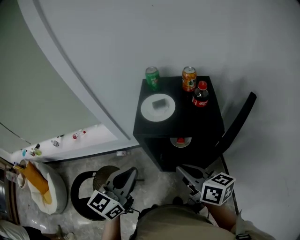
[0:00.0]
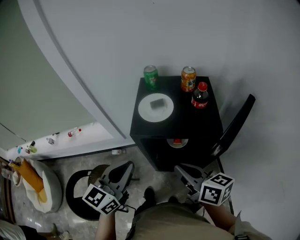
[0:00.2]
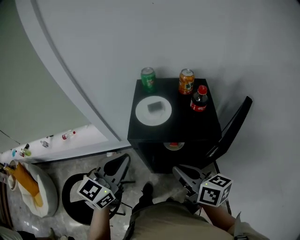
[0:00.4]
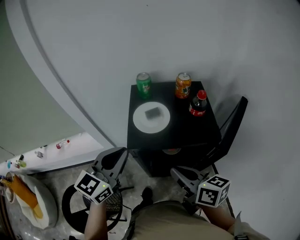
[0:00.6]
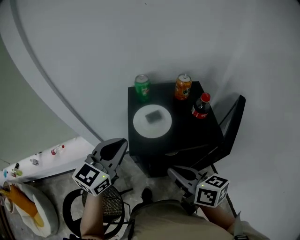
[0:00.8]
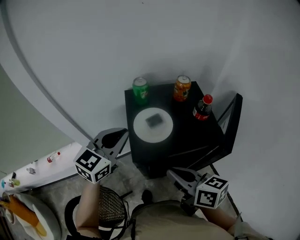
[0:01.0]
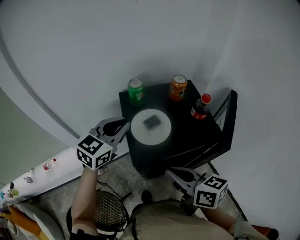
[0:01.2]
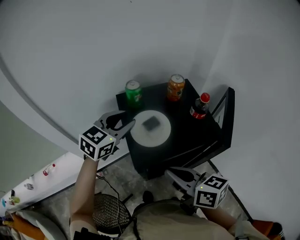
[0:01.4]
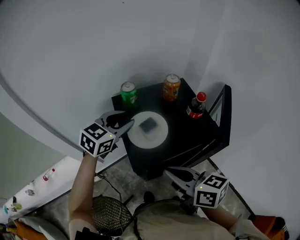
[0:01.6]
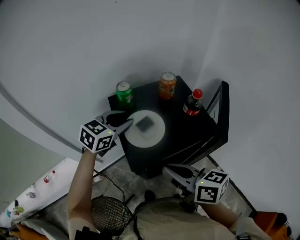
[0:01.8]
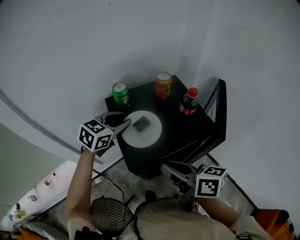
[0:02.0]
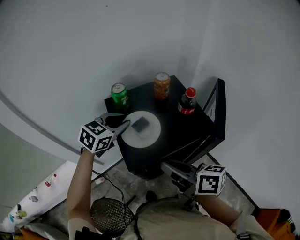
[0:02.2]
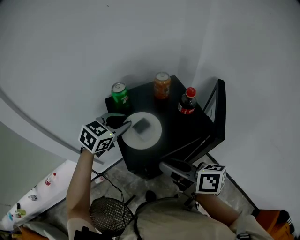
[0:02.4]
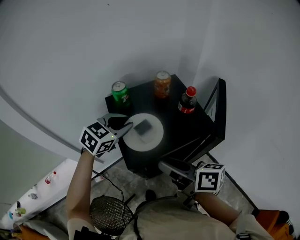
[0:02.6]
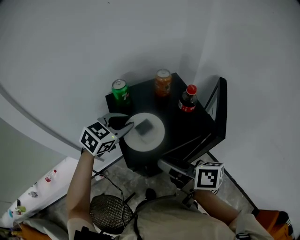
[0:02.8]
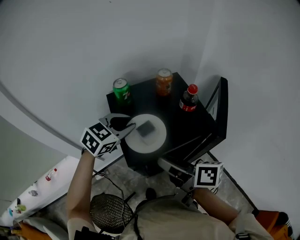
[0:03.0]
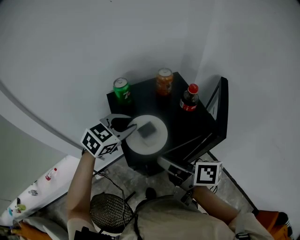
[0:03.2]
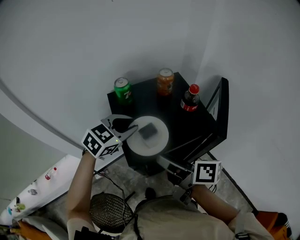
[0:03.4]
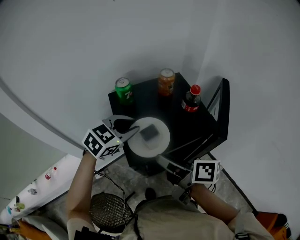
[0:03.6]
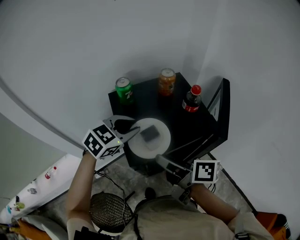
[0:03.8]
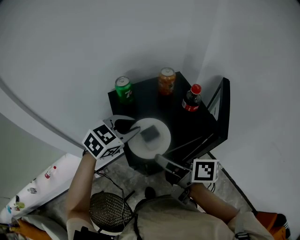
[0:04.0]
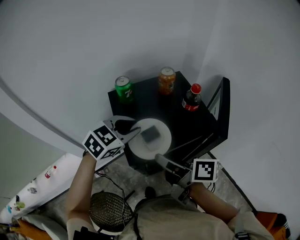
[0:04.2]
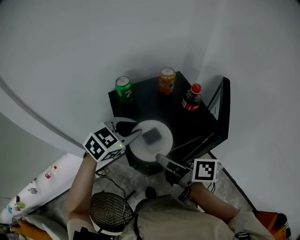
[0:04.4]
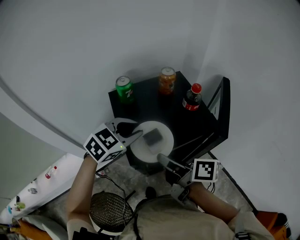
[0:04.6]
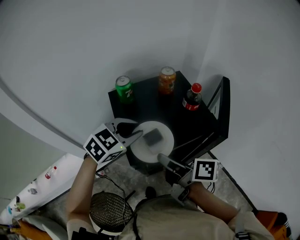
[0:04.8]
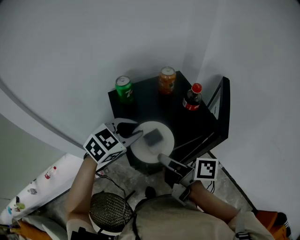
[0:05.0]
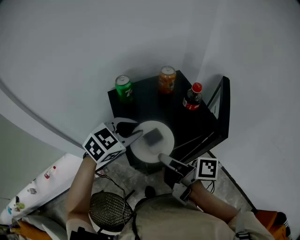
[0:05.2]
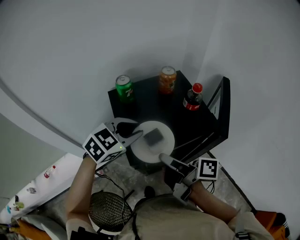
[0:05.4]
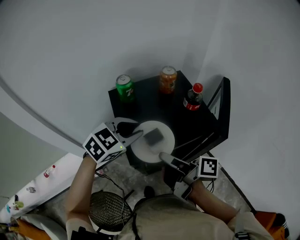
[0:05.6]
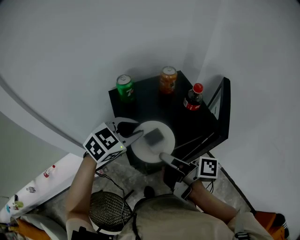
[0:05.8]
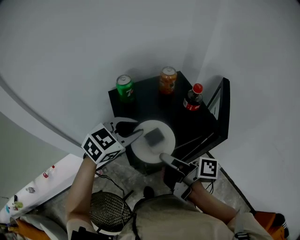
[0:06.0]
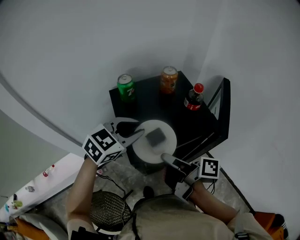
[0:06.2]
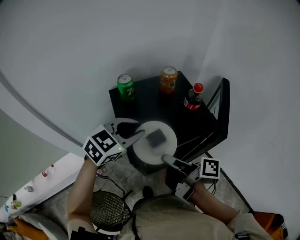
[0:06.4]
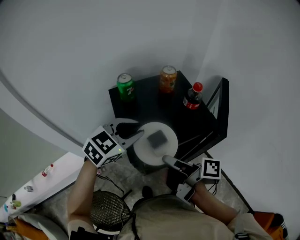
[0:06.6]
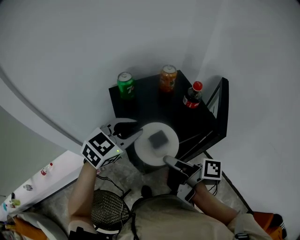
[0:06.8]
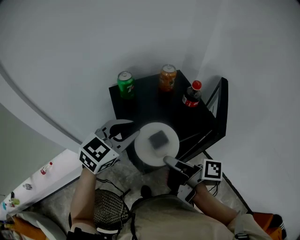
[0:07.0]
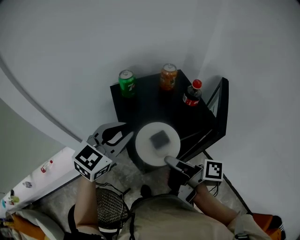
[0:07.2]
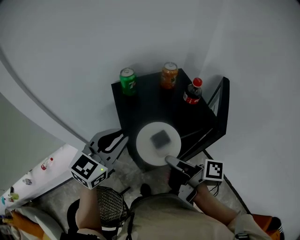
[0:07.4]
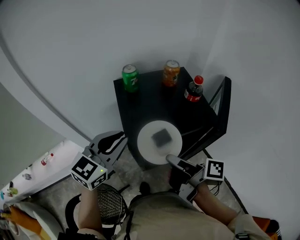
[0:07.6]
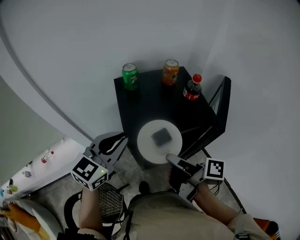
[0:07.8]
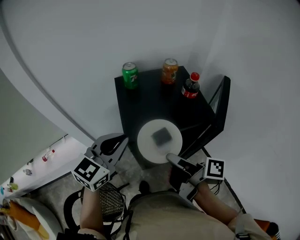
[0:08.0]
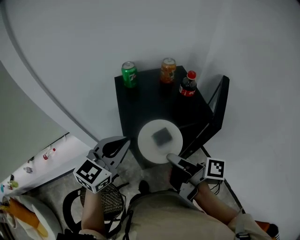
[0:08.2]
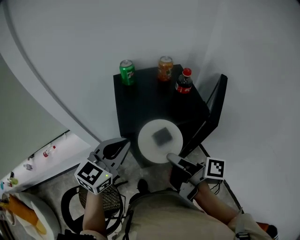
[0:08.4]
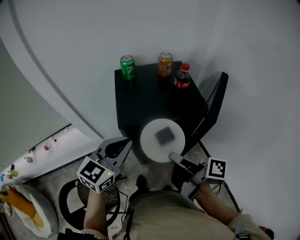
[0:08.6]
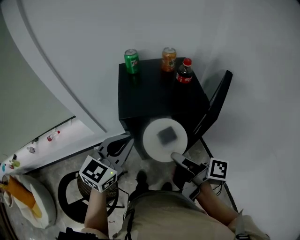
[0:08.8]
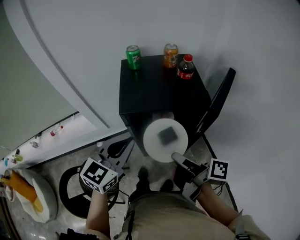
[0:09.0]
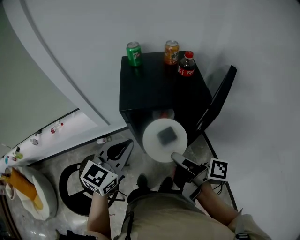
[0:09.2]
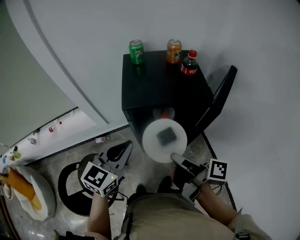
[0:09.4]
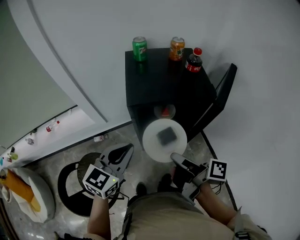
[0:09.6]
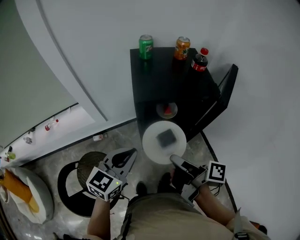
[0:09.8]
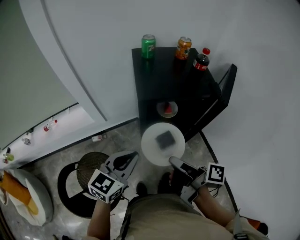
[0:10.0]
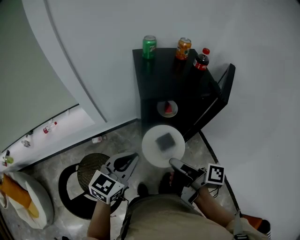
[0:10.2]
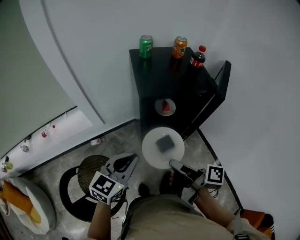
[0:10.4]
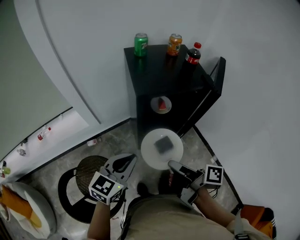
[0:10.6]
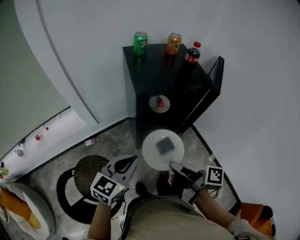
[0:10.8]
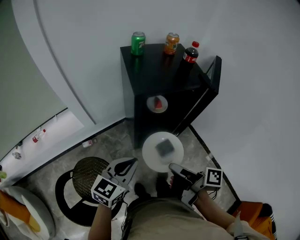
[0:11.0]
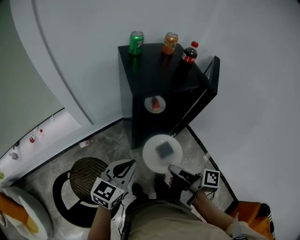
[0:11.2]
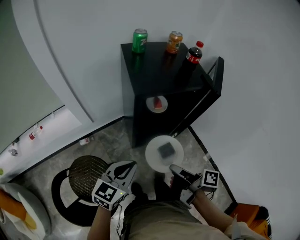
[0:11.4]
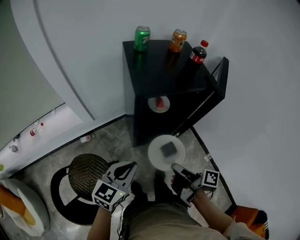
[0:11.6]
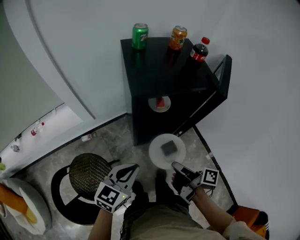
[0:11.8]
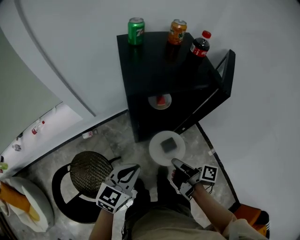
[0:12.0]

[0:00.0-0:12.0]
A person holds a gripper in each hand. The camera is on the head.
0:00.0 to 0:01.6: The right gripper shifts by roughly 10 cm. The left gripper moves some 30 cm, changes its angle by some 40 degrees, and opens up.
0:01.6 to 0:03.0: The right gripper changes its angle by some 30 degrees, and opens its fingers.
0:03.0 to 0:04.4: The grippers make only small movements.
0:04.4 to 0:06.0: The right gripper changes its angle by roughly 20 degrees.
0:06.0 to 0:07.6: The right gripper changes place by approximately 5 cm. The left gripper goes some 10 cm backward, and turns by some 30 degrees.
0:07.6 to 0:09.0: Both grippers move backward and to the right, approximately 15 cm.
0:09.0 to 0:10.4: The left gripper travels backward, to the left and downward by some 15 cm; the right gripper heads to the left and backward, covering about 15 cm.
0:10.4 to 0:12.0: The right gripper shifts about 15 cm downward and to the right; the left gripper travels downward by about 10 cm.

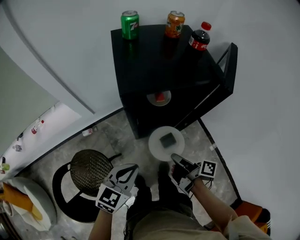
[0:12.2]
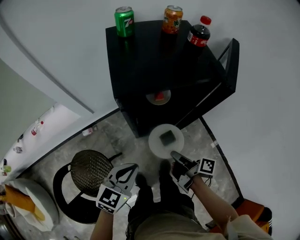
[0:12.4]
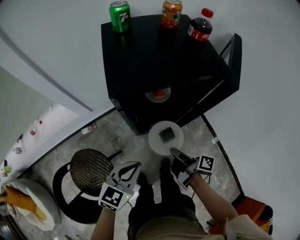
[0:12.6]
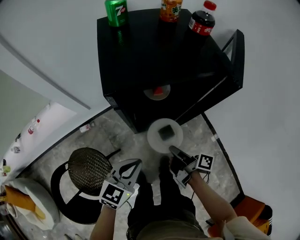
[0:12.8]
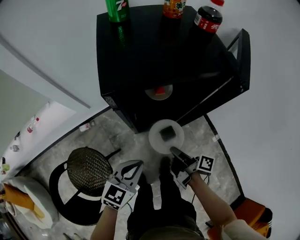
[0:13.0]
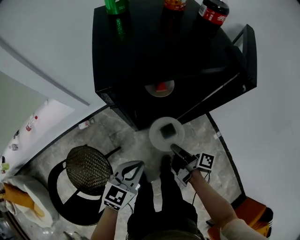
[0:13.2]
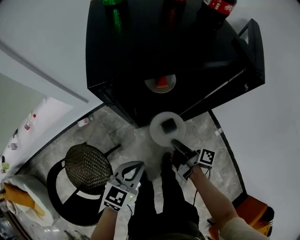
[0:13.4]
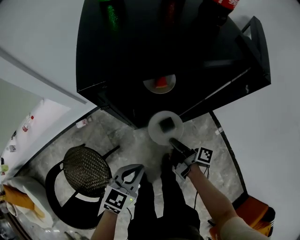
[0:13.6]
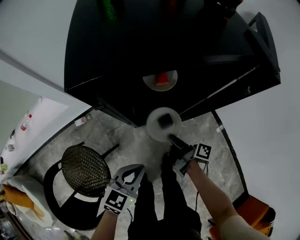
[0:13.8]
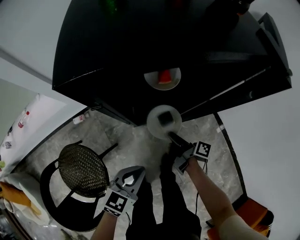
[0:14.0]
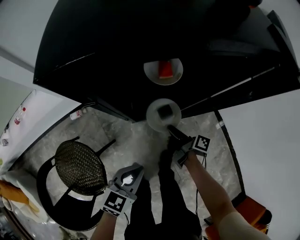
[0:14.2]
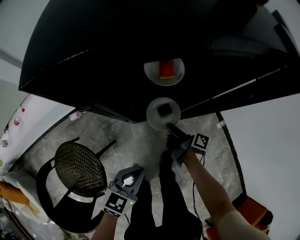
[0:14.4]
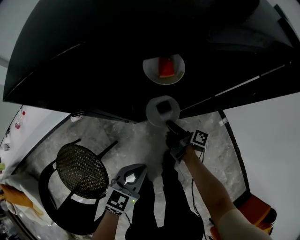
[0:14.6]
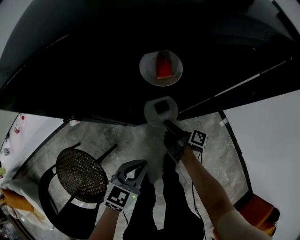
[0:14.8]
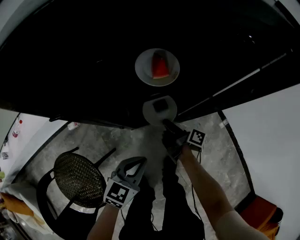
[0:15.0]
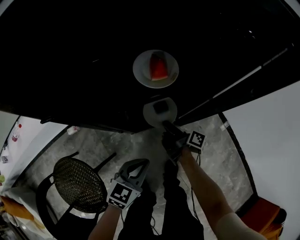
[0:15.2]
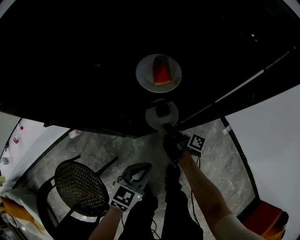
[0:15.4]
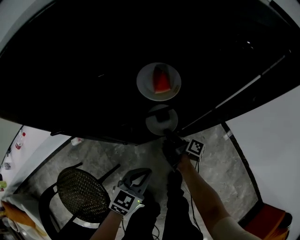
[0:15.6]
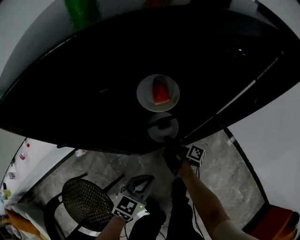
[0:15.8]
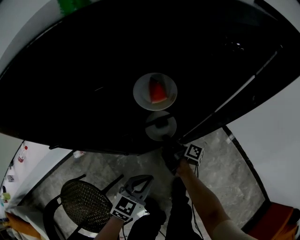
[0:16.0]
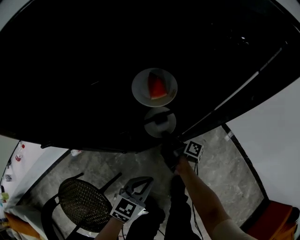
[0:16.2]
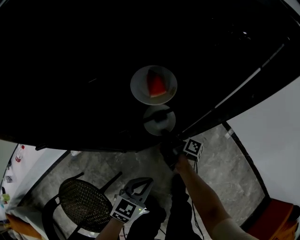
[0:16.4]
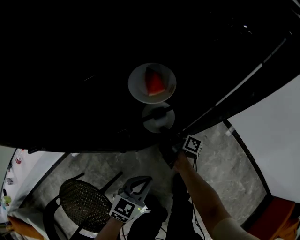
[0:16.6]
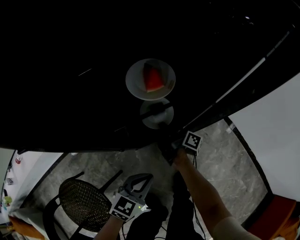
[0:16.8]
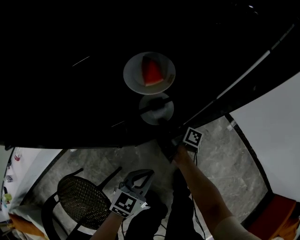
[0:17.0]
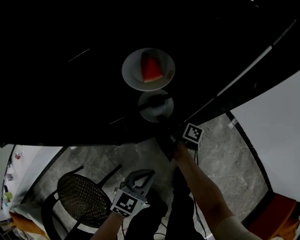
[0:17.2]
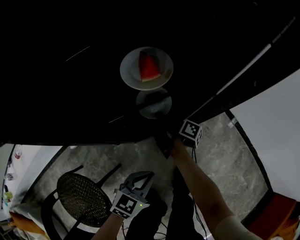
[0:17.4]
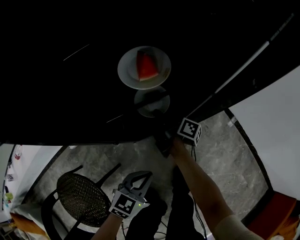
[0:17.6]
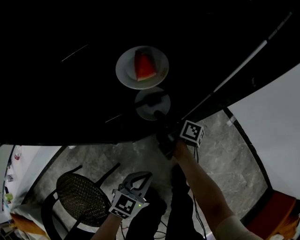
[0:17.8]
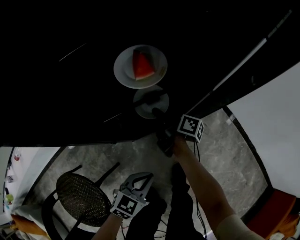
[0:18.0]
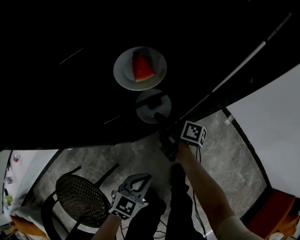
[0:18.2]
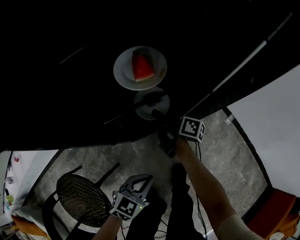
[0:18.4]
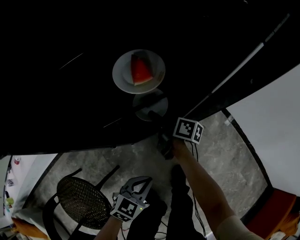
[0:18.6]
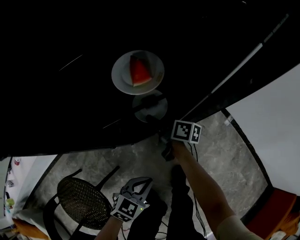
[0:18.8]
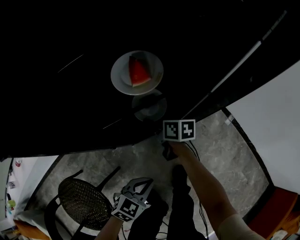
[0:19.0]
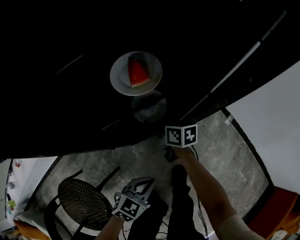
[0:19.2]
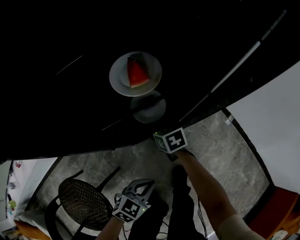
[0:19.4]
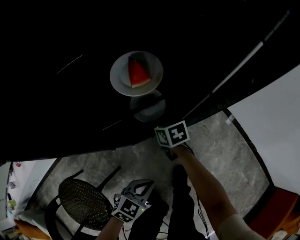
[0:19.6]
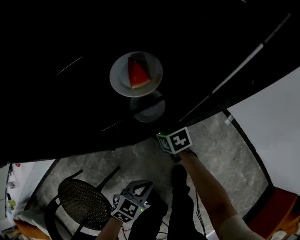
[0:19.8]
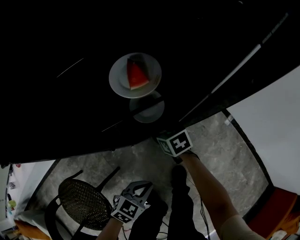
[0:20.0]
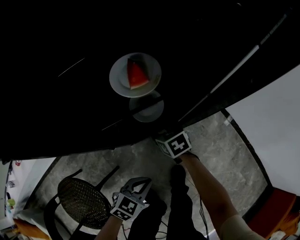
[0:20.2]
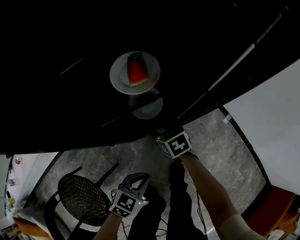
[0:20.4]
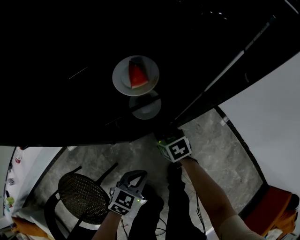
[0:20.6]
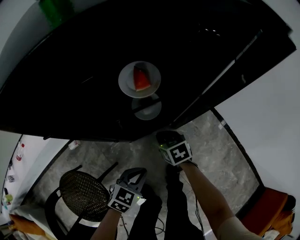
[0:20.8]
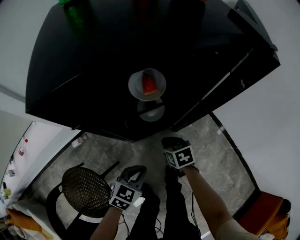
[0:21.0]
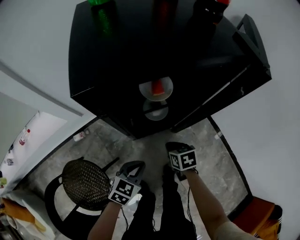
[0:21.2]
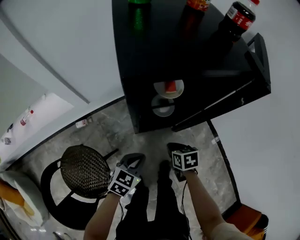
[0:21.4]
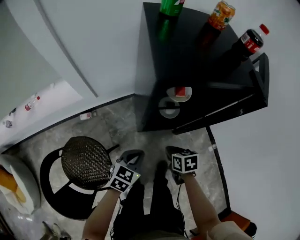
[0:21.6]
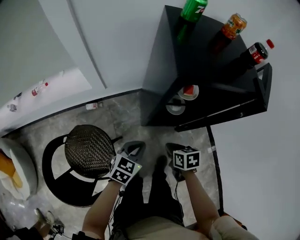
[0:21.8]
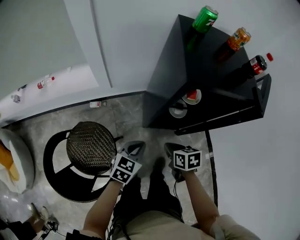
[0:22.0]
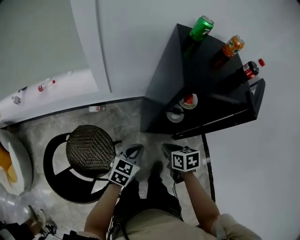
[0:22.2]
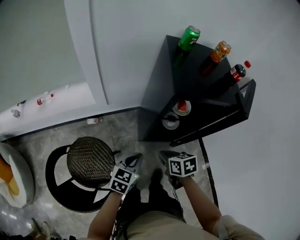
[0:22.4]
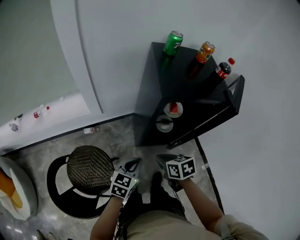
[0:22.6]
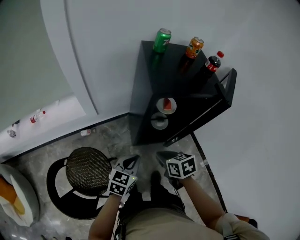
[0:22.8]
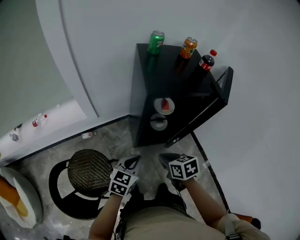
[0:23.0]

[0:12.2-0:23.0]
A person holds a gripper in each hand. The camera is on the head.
0:12.2 to 0:13.8: The left gripper shifts roughly 15 cm downward. Meanwhile the right gripper heads downward and forward, covering roughly 20 cm.
0:13.8 to 0:15.2: The right gripper shifts roughly 15 cm downward and forward. Meanwhile the left gripper moves downward, roughly 15 cm.
0:15.2 to 0:16.8: The right gripper travels forward by about 5 cm.
0:16.8 to 0:18.4: The right gripper opens up, while the left gripper ends up about 5 cm from where it was.
0:18.4 to 0:20.0: The right gripper rolls counterclockwise, seen from behind, by some 60 degrees.
0:20.0 to 0:21.4: The left gripper goes roughly 20 cm upward and to the left, and rotates about 20 degrees; the right gripper is displaced upward and backward by about 20 cm, and closes its fingers.
0:21.4 to 0:23.0: The left gripper shifts roughly 20 cm upward; the right gripper shifts some 25 cm upward and to the left.

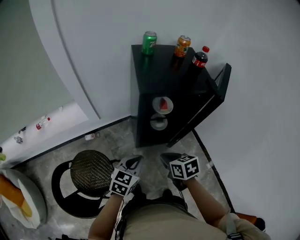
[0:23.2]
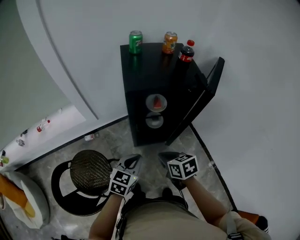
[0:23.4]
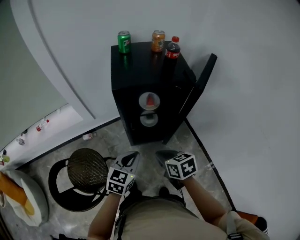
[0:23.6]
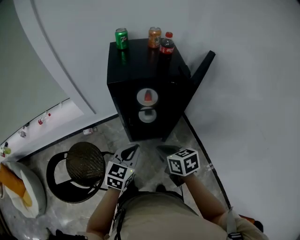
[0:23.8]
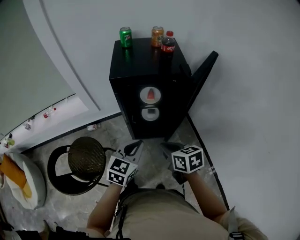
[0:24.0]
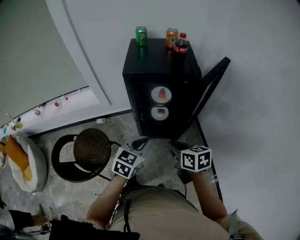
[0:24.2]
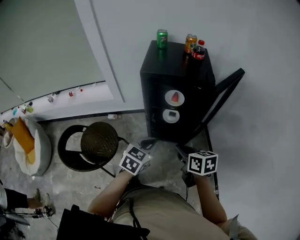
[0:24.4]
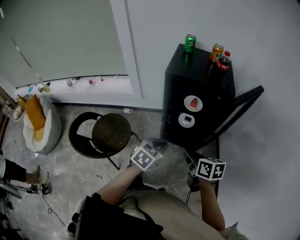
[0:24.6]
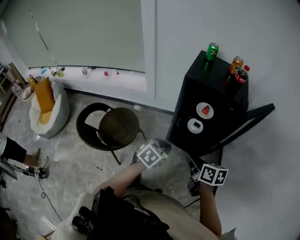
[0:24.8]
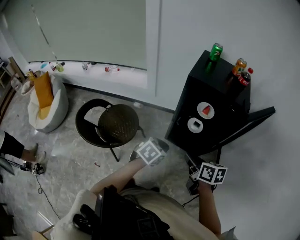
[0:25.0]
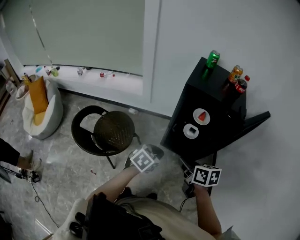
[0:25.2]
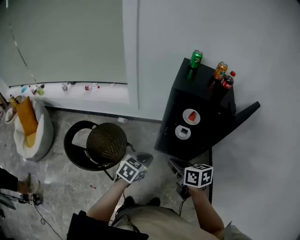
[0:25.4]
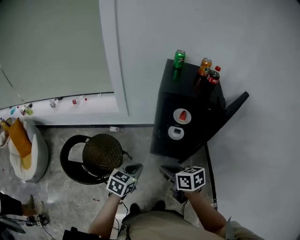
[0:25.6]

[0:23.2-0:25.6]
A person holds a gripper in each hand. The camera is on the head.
0:23.2 to 0:24.4: Both grippers travel together to the right, backward and upward, roughly 20 cm.
0:24.4 to 0:25.6: The two grippers go roughly 15 cm to the left.
